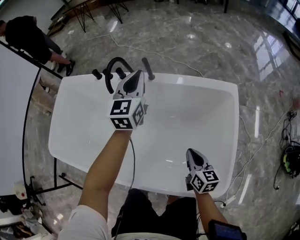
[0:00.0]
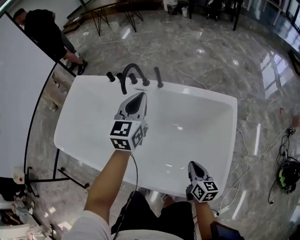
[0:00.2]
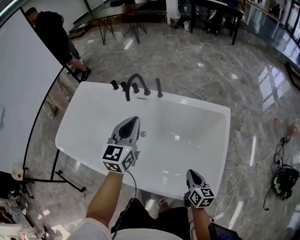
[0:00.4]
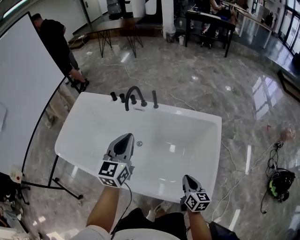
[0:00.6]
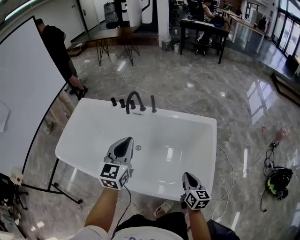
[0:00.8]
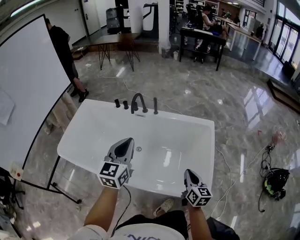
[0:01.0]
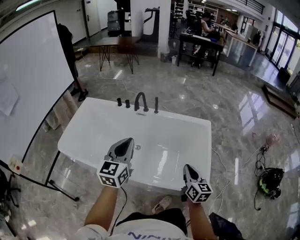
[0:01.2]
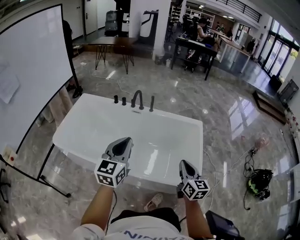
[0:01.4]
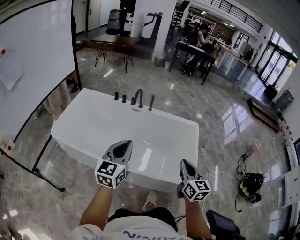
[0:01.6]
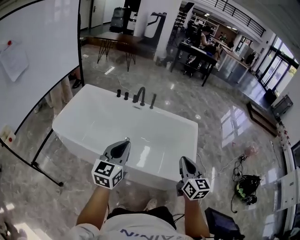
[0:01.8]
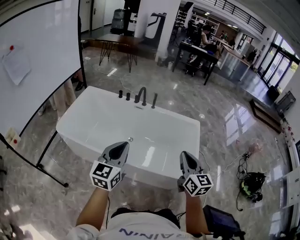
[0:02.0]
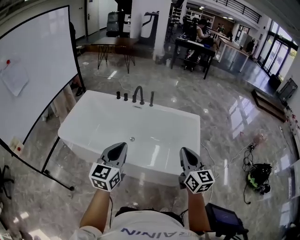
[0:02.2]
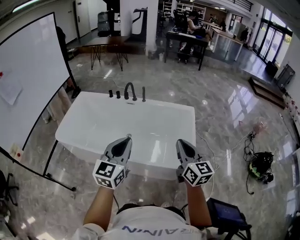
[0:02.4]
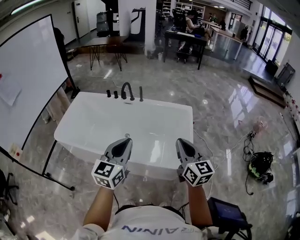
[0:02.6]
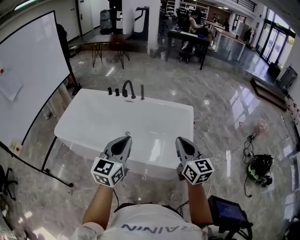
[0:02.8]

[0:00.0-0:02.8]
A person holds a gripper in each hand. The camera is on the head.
0:00.0 to 0:01.4: The right gripper shifts some 40 cm upward and backward, and swivels approximately 20 degrees. Meanwhile the left gripper goes approximately 60 cm backward and upward.
0:01.4 to 0:02.8: The right gripper is displaced upward, backward and to the right by roughly 15 cm; the left gripper is displaced backward and to the right by some 20 cm.

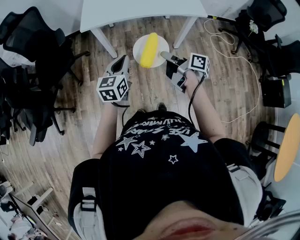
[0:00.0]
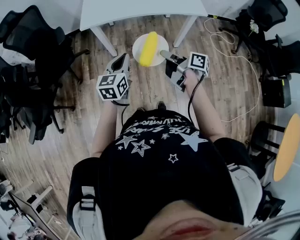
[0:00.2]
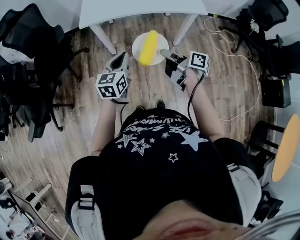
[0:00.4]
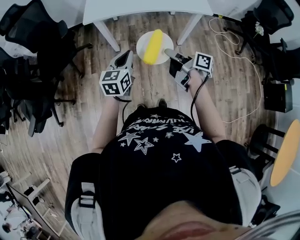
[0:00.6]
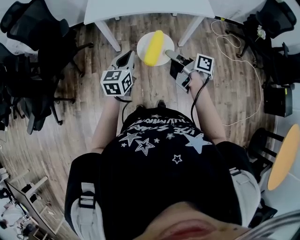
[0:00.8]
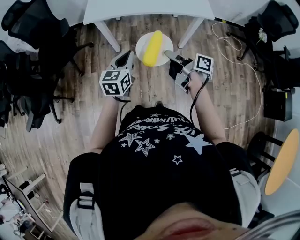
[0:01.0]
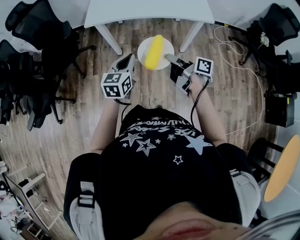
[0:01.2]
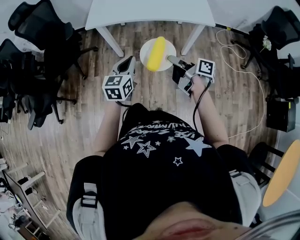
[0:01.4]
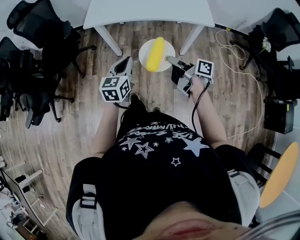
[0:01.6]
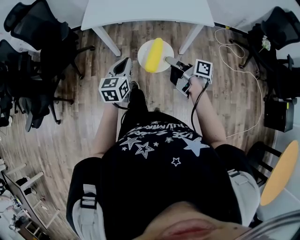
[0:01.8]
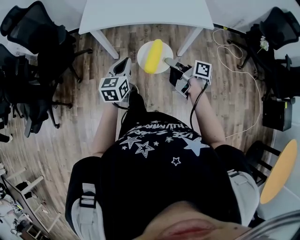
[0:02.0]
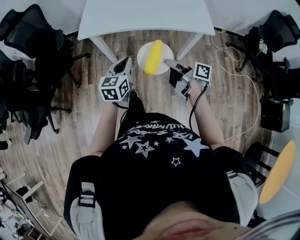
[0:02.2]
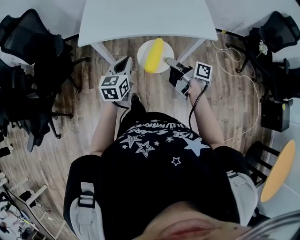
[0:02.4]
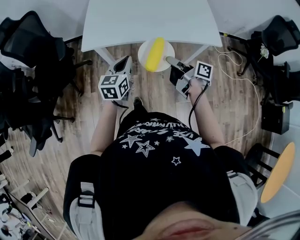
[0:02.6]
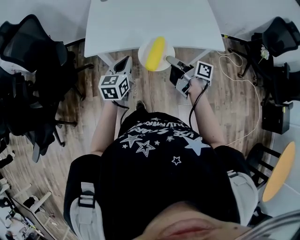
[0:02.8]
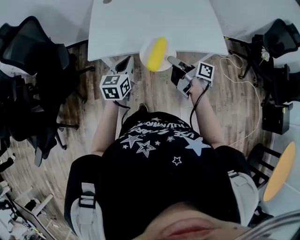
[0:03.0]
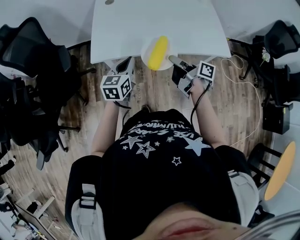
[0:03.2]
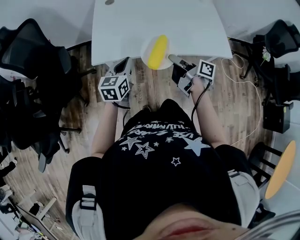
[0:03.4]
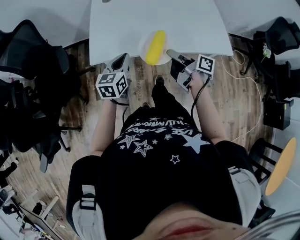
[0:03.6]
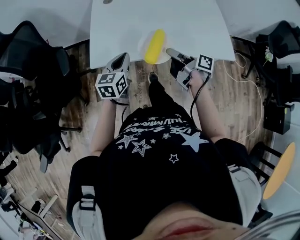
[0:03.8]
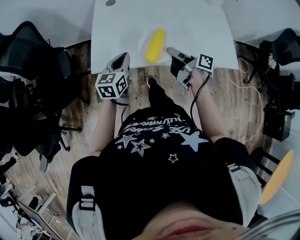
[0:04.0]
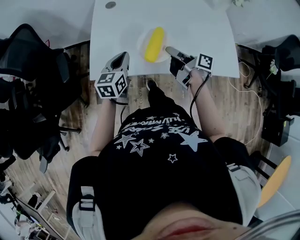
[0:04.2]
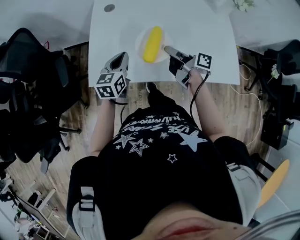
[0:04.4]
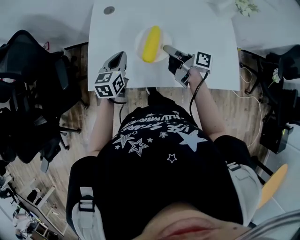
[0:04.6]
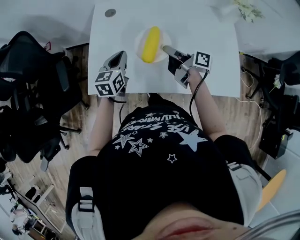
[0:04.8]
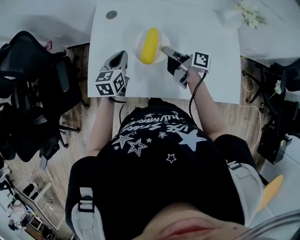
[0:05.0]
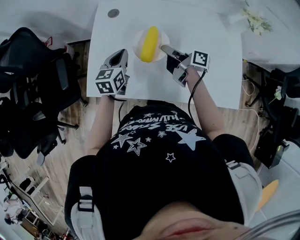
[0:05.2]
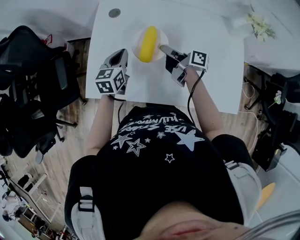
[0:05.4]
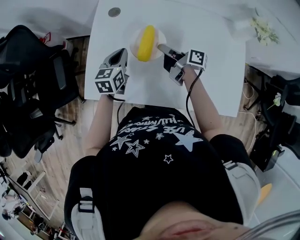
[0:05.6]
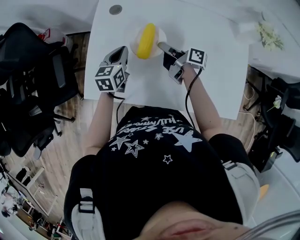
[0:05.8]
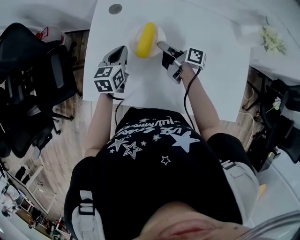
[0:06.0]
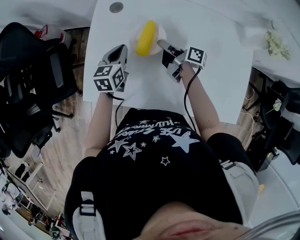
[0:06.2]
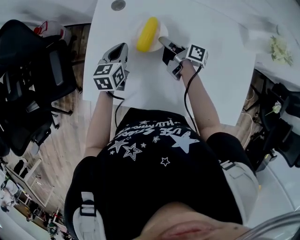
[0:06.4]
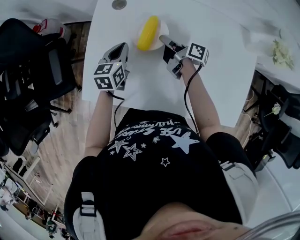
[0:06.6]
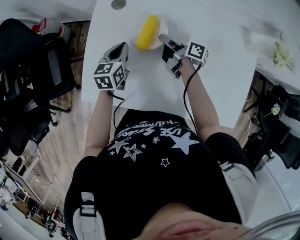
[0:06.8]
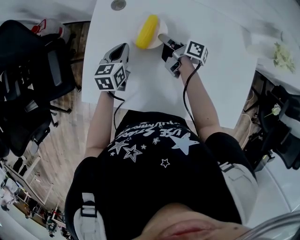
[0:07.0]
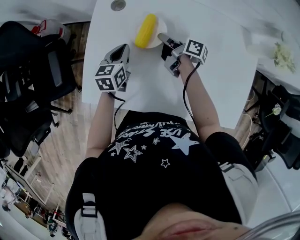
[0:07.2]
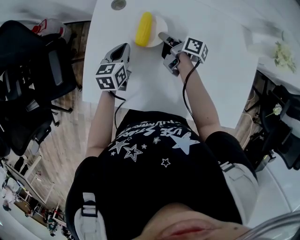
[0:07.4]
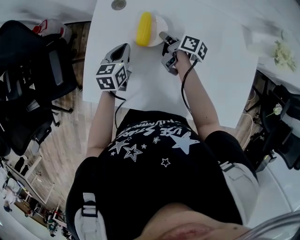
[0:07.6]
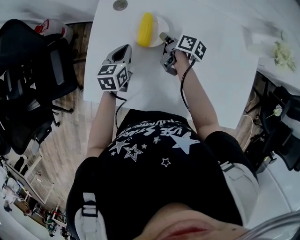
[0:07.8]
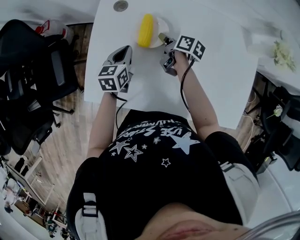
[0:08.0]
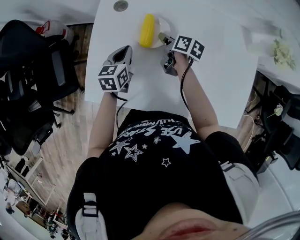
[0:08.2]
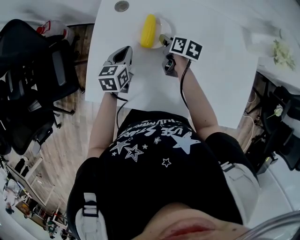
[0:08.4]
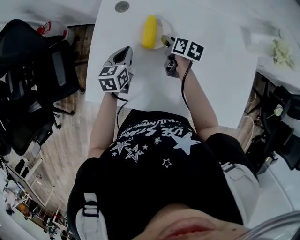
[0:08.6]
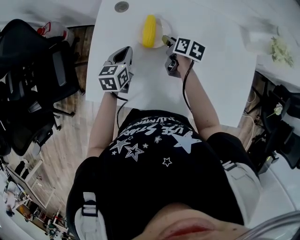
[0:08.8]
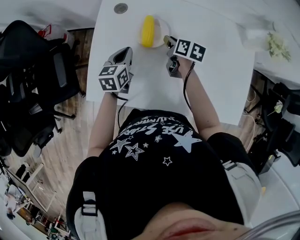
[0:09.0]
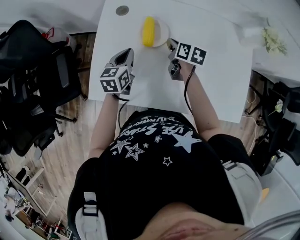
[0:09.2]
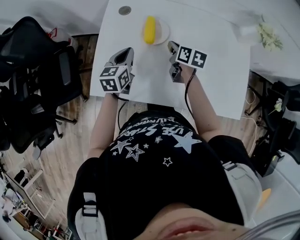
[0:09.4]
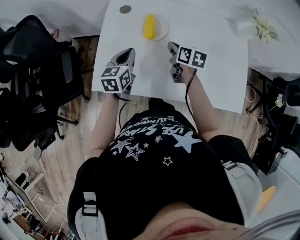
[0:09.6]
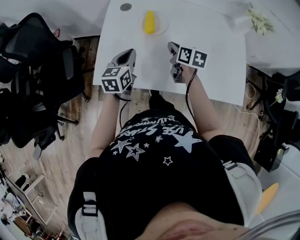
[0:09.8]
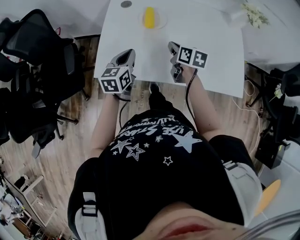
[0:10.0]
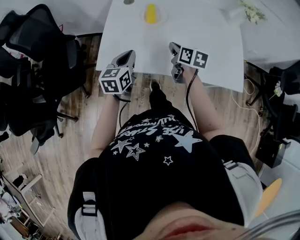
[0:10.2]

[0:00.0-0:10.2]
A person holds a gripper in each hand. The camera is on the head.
0:00.0 to 0:01.4: Both grippers travel together to the right, some 10 cm.
0:01.4 to 0:03.0: The two grippers go roughly 30 cm forward.
0:03.0 to 0:04.4: Both grippers travel together forward, roughly 25 cm.
0:04.4 to 0:05.8: The left gripper is displaced forward by approximately 15 cm, while the right gripper heads forward and downward, covering some 20 cm.
0:05.8 to 0:07.2: The right gripper travels forward and downward by roughly 10 cm. Meanwhile the left gripper heads downward, covering roughly 5 cm.
0:07.2 to 0:08.8: The right gripper turns by roughly 40 degrees, and opens.
0:08.8 to 0:10.2: The grippers both shift backward and upward by about 25 cm. The right gripper closes.

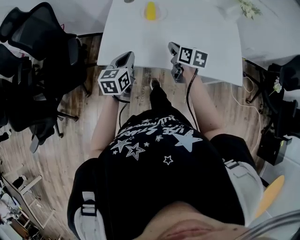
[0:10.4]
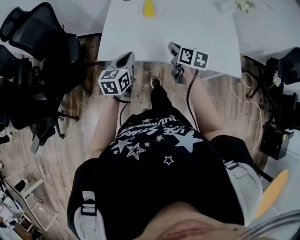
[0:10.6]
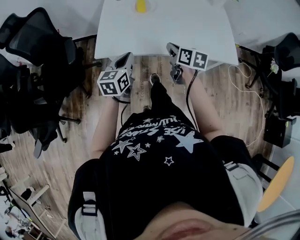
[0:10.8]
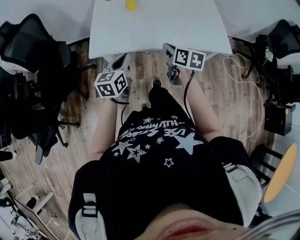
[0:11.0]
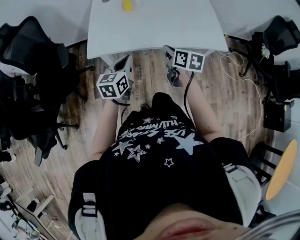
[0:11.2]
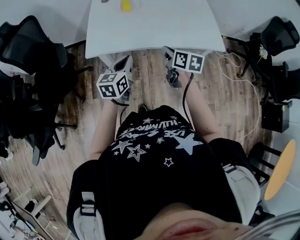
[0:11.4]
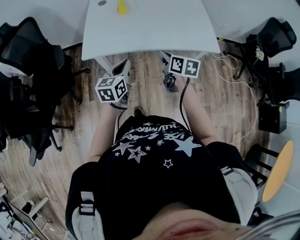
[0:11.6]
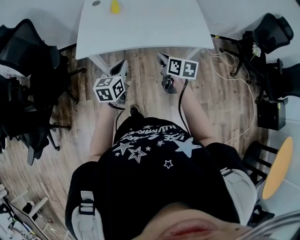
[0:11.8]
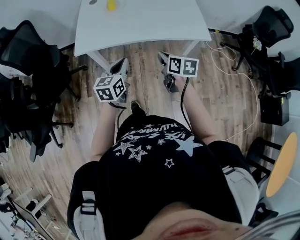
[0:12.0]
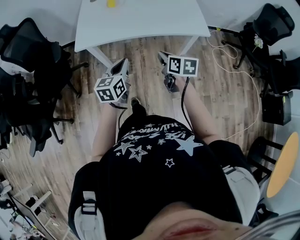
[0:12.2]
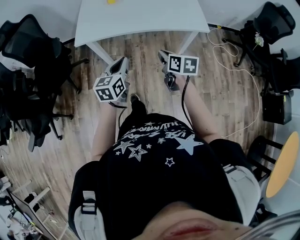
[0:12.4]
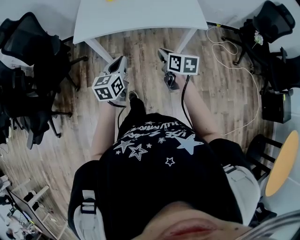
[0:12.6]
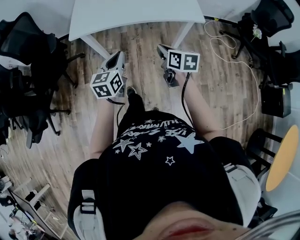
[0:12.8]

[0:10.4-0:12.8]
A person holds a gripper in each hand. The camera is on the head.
0:10.4 to 0:11.6: The left gripper moves backward and to the right, approximately 20 cm, while the right gripper travels backward by approximately 20 cm.
0:11.6 to 0:12.8: Both grippers move backward and to the right, about 20 cm.

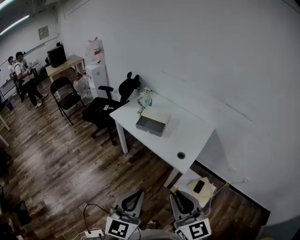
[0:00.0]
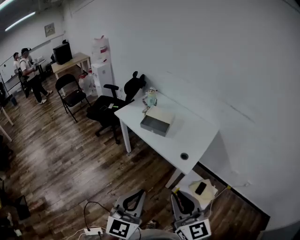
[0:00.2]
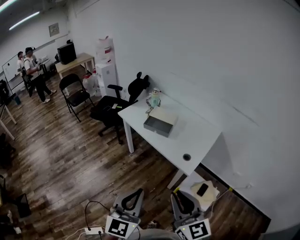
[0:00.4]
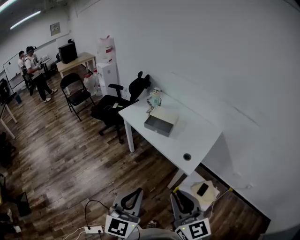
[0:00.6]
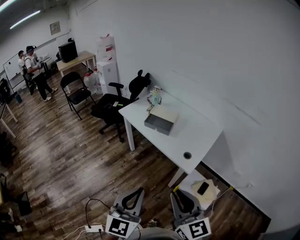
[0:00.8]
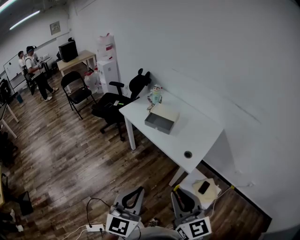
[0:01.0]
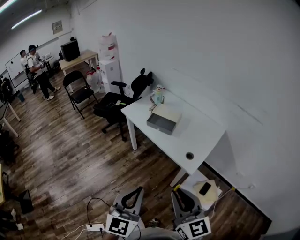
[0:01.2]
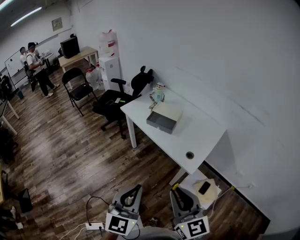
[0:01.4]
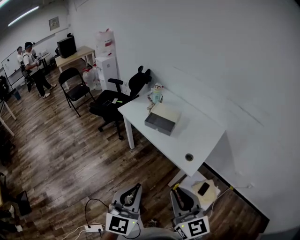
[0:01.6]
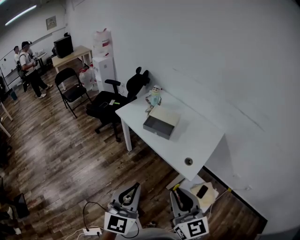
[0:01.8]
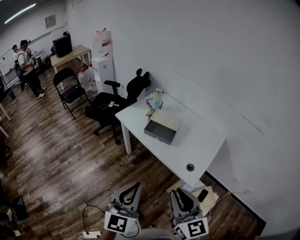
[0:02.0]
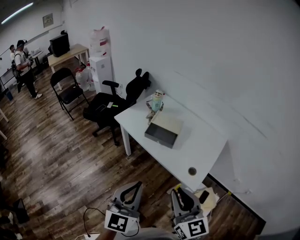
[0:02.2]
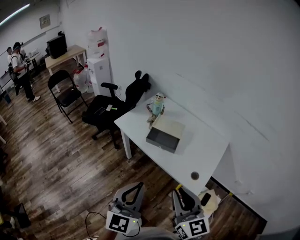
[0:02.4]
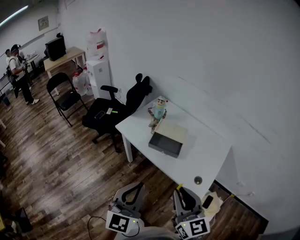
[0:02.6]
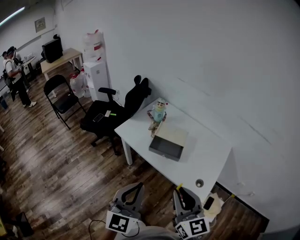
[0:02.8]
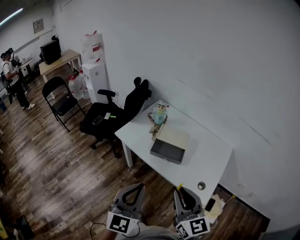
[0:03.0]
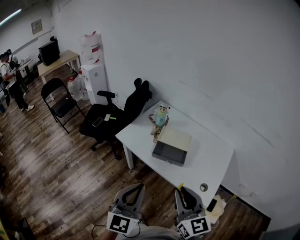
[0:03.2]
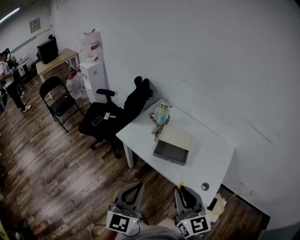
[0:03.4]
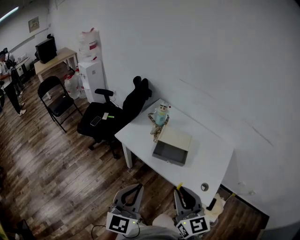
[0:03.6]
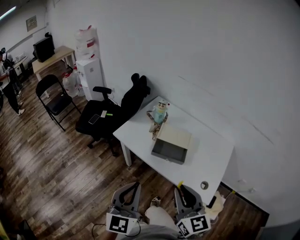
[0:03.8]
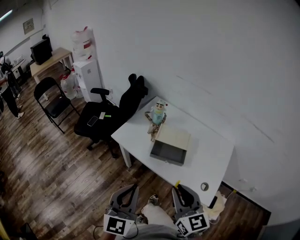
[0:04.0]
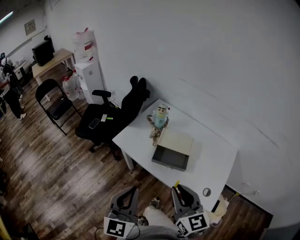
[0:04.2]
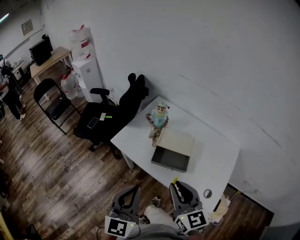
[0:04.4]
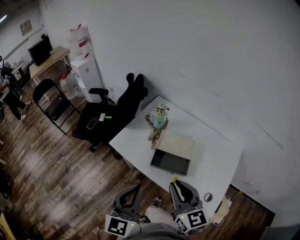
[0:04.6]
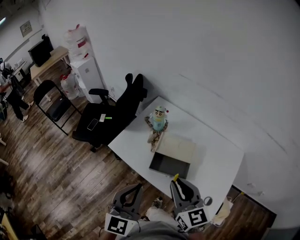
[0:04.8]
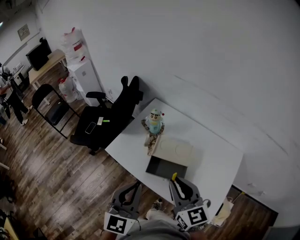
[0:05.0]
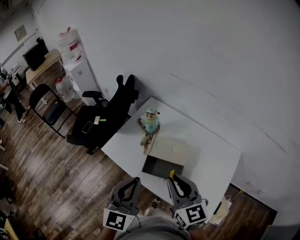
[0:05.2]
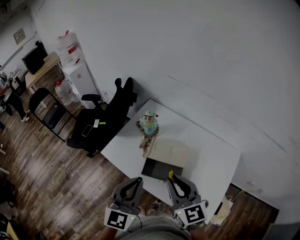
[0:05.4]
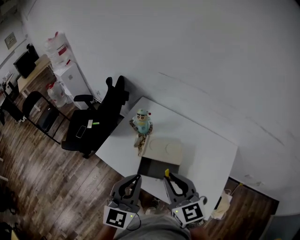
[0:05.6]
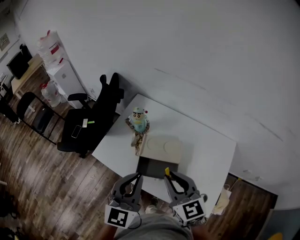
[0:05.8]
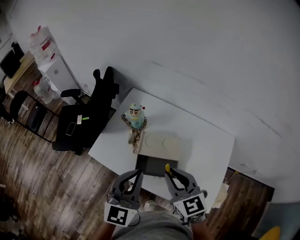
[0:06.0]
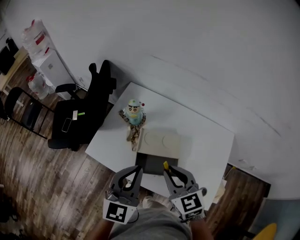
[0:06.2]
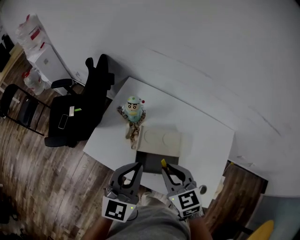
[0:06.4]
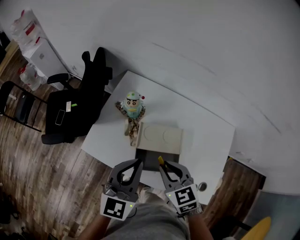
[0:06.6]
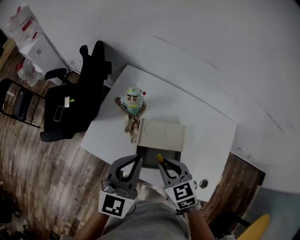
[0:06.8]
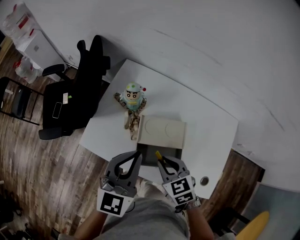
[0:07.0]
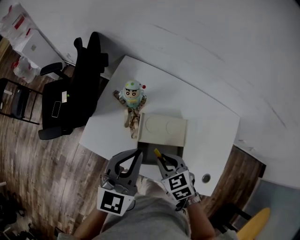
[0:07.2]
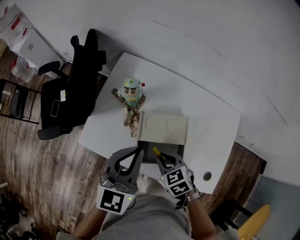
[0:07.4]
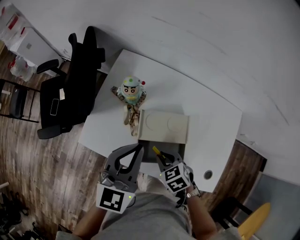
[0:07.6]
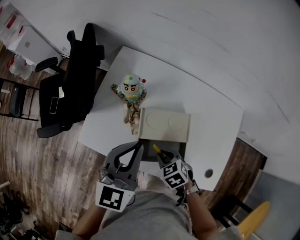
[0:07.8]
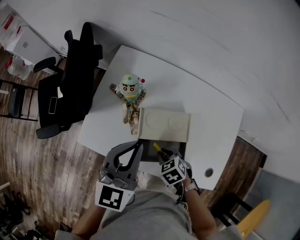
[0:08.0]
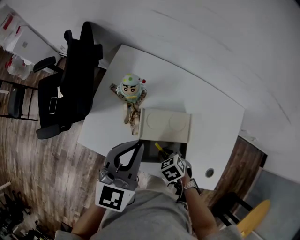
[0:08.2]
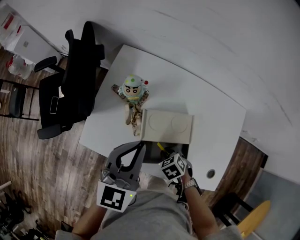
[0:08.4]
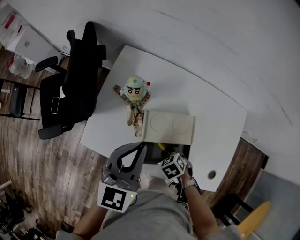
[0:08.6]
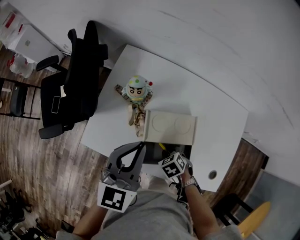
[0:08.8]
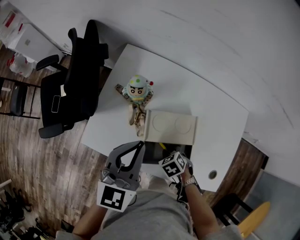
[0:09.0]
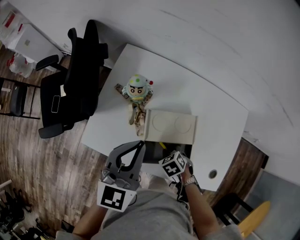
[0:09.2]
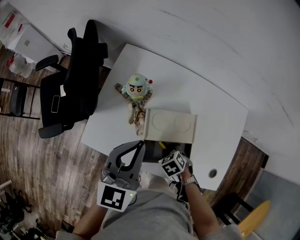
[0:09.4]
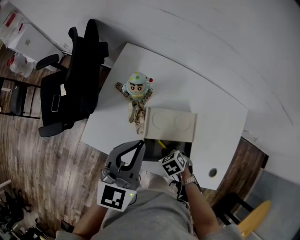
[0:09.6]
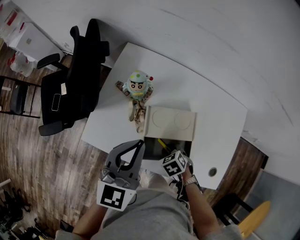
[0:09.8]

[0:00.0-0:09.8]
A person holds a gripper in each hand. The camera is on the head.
0:00.0 to 0:01.4: The grippers make only small movements.
0:01.4 to 0:02.8: Both grippers move forward, roughly 25 cm.
0:02.8 to 0:04.2: The left gripper is displaced forward and to the left by some 10 cm, while the right gripper is displaced forward by approximately 10 cm.
0:04.2 to 0:05.6: The right gripper shifts approximately 15 cm forward; the left gripper heads forward and to the right, covering roughly 20 cm.
0:05.6 to 0:07.0: The left gripper goes roughly 15 cm forward and downward. Meanwhile the right gripper travels downward and forward by roughly 20 cm, and points its fingers some 30 degrees further downward.
0:07.0 to 0:08.4: The right gripper is displaced downward by roughly 15 cm, and changes its angle by about 30 degrees. Meanwhile the left gripper moves about 5 cm.
0:08.4 to 0:09.8: There are only small adjustments of the grippers.
